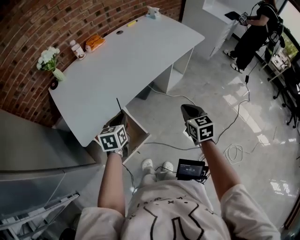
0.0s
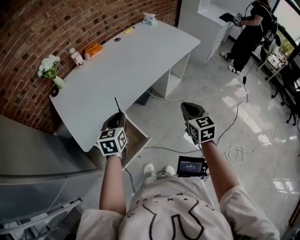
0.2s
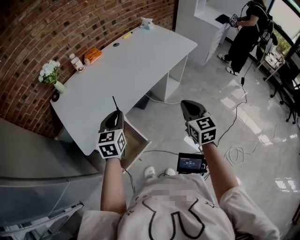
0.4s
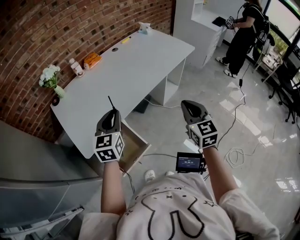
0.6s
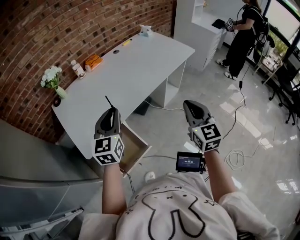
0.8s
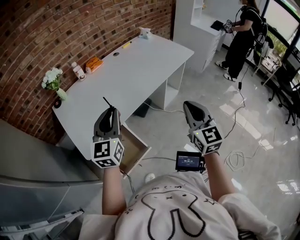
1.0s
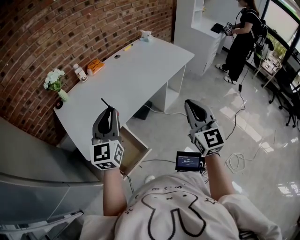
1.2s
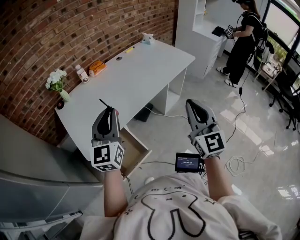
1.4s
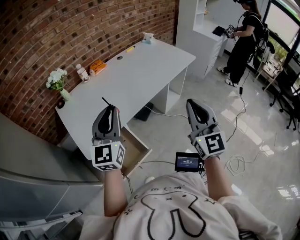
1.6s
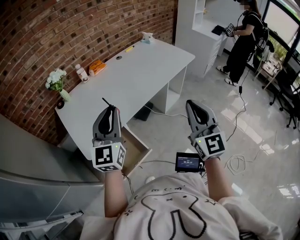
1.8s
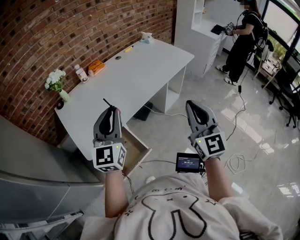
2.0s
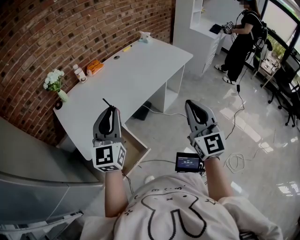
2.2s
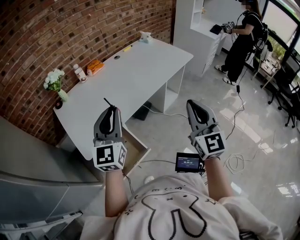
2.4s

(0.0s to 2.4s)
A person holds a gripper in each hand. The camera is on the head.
0.0s - 1.2s: Both grippers move upward, approximately 20 cm. The left gripper tilts its fingers some 40 degrees upward. The right gripper tips its fingers upward by some 30 degrees.
1.2s - 2.4s: There are only small adjustments of the grippers.

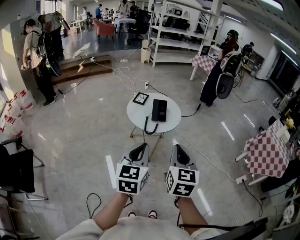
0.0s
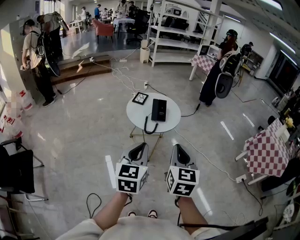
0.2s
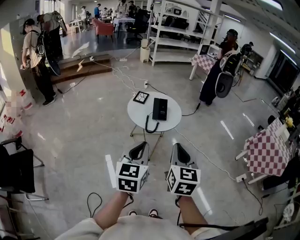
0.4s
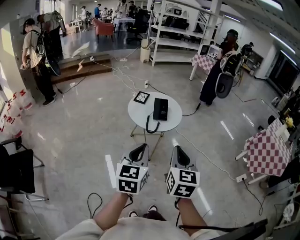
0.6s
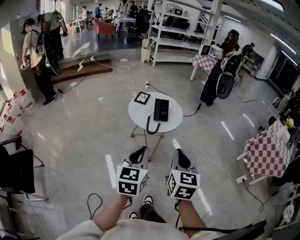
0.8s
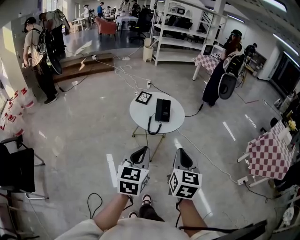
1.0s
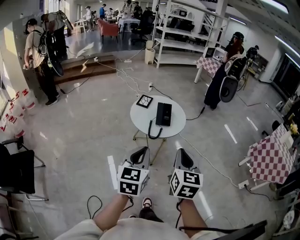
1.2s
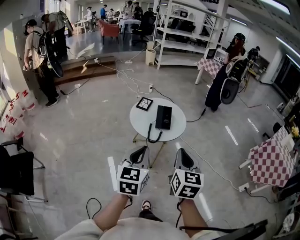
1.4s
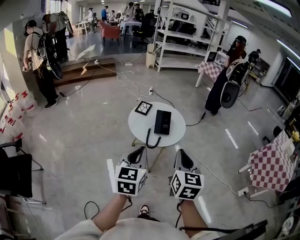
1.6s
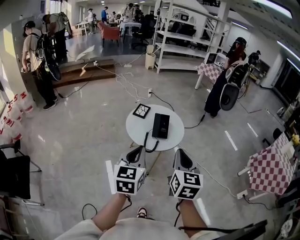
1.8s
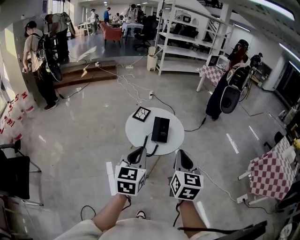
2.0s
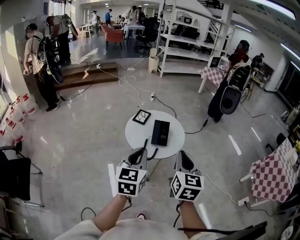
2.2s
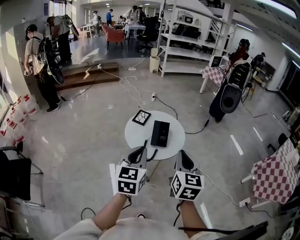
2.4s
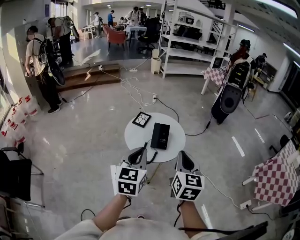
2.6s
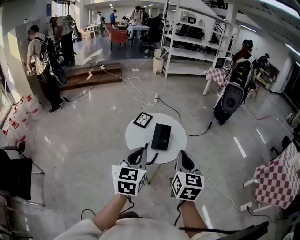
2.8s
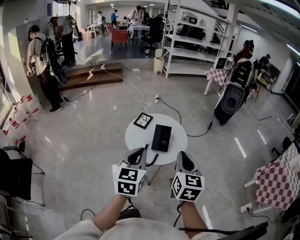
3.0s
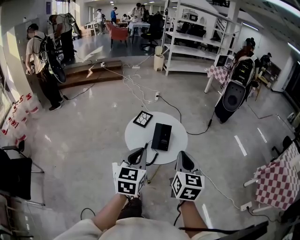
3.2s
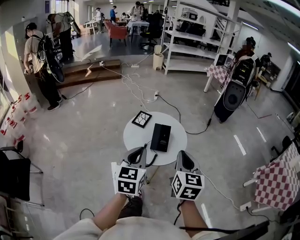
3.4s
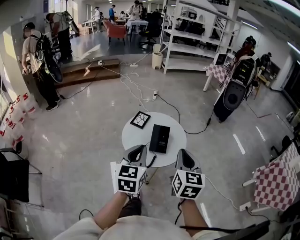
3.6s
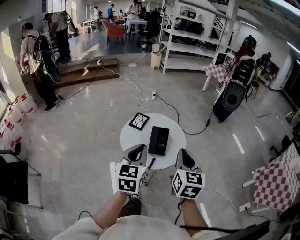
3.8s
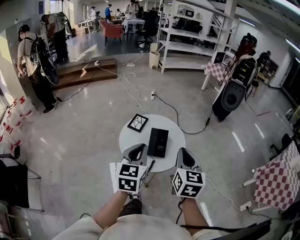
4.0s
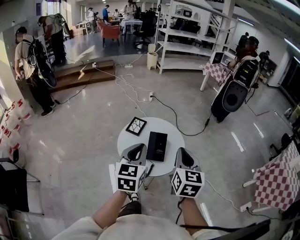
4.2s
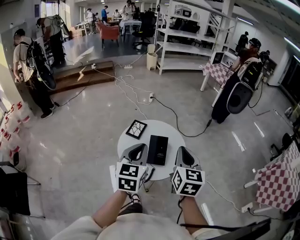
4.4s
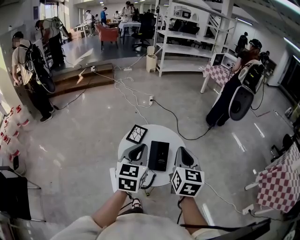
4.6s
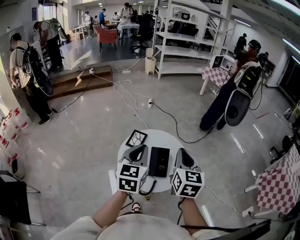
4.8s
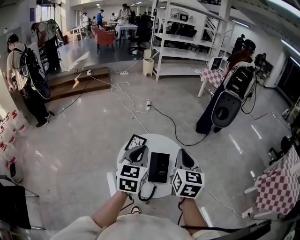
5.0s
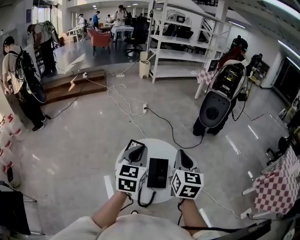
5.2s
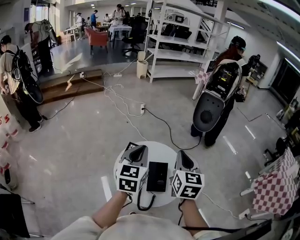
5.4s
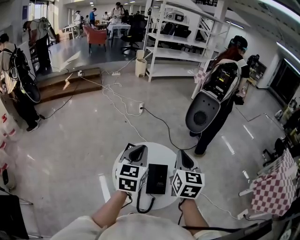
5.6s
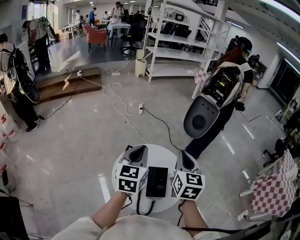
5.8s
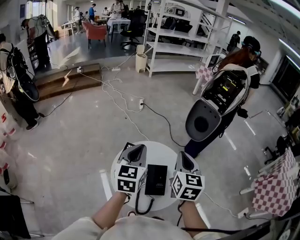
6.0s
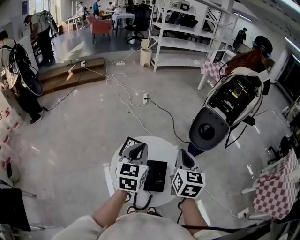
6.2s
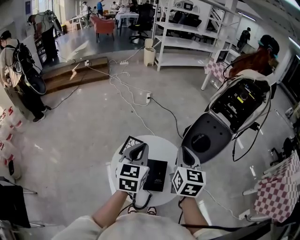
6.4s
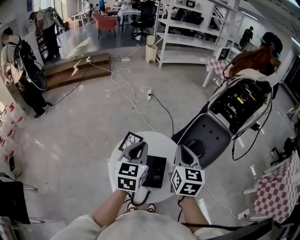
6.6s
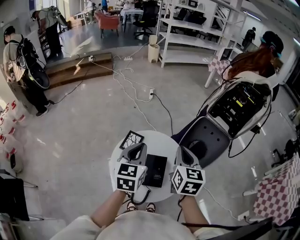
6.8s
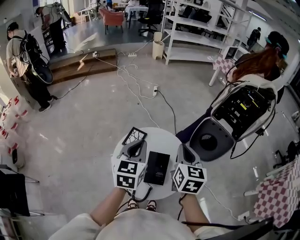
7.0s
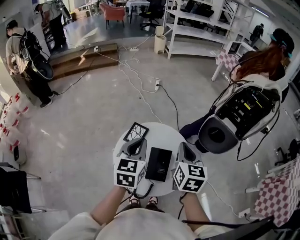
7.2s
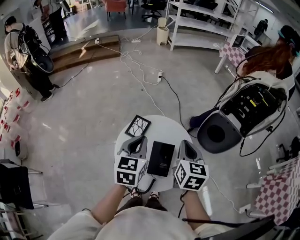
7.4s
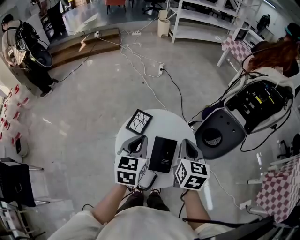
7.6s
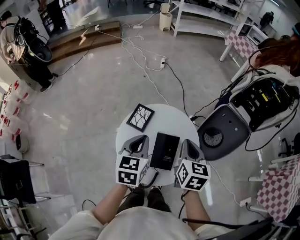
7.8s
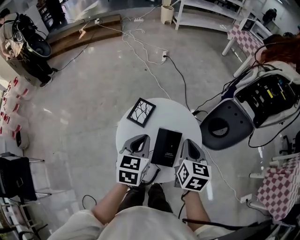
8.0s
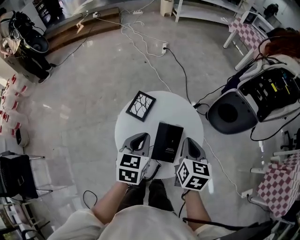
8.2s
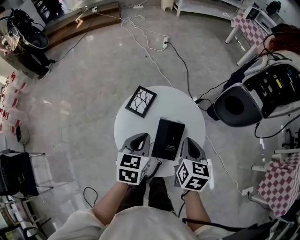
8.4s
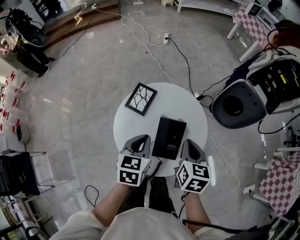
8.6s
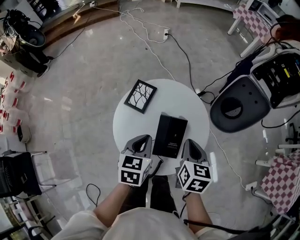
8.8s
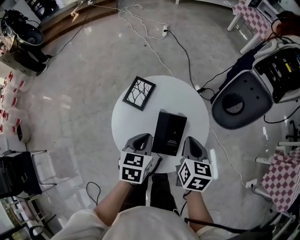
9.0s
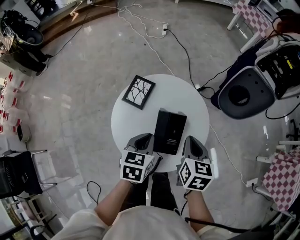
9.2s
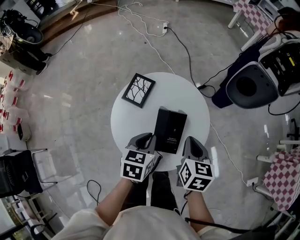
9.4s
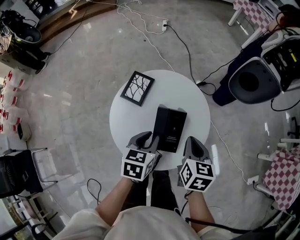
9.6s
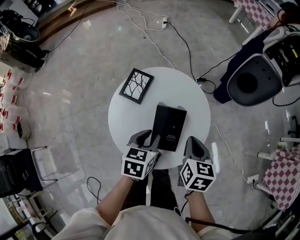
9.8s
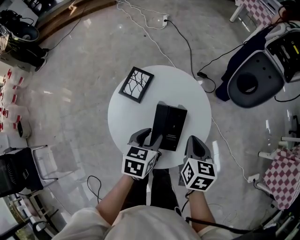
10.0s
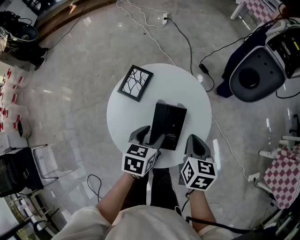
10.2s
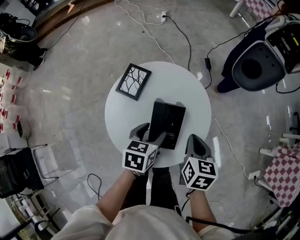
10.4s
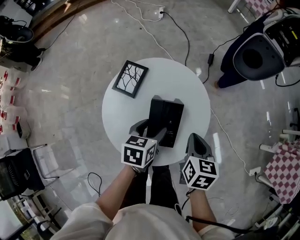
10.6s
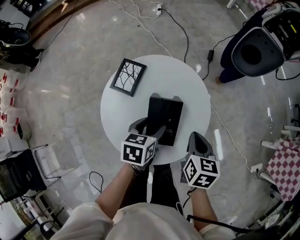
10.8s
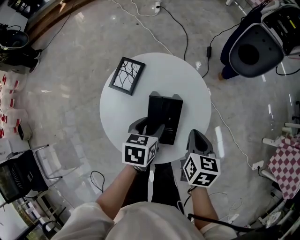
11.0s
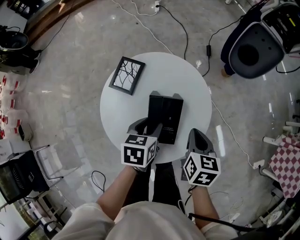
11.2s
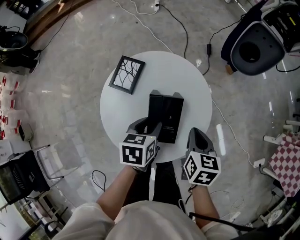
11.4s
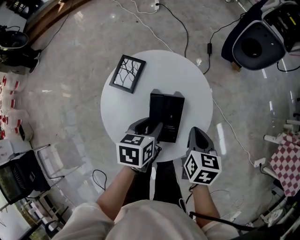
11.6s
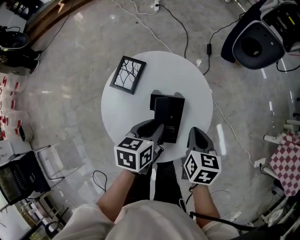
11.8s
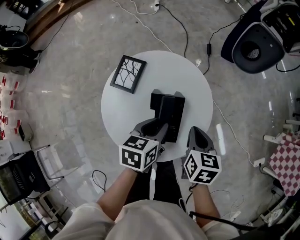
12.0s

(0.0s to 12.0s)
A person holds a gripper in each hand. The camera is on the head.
0.0s - 1.6s: Both grippers move forward, approximately 10 cm.
1.6s - 3.0s: The grippers both shift forward by about 10 cm.
3.0s - 4.4s: The two grippers go roughly 15 cm forward.
4.4s - 6.0s: The grippers both shift forward by some 15 cm.
6.0s - 7.6s: Both grippers travel together downward, some 10 cm.
7.6s - 9.0s: The two grippers go some 15 cm downward.
9.0s - 10.4s: The right gripper shifts by approximately 5 cm. Meanwhile the left gripper changes place by approximately 5 cm, and opens up.
10.4s - 12.0s: The left gripper closes its fingers.

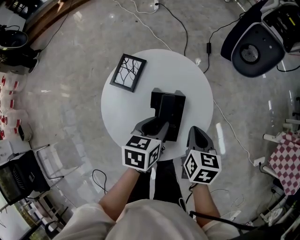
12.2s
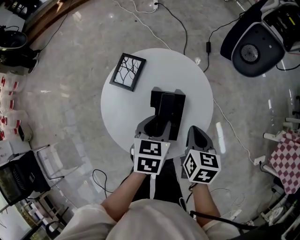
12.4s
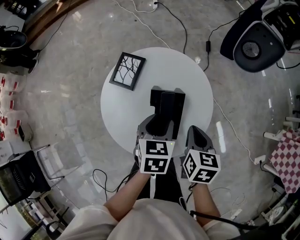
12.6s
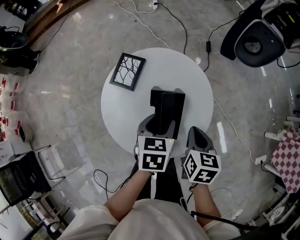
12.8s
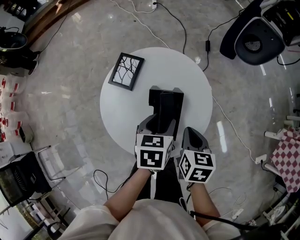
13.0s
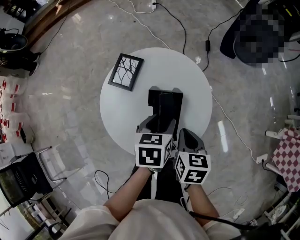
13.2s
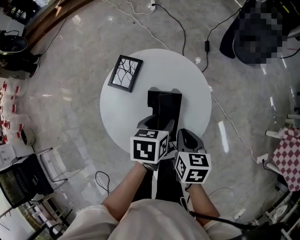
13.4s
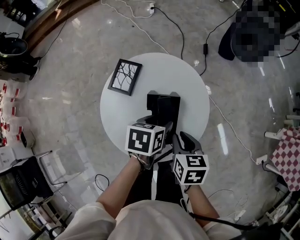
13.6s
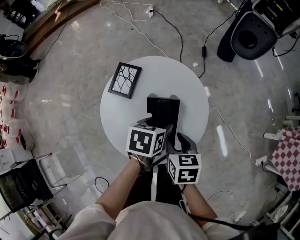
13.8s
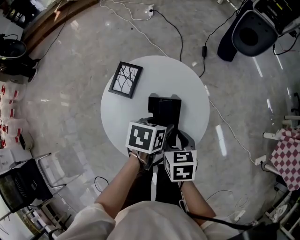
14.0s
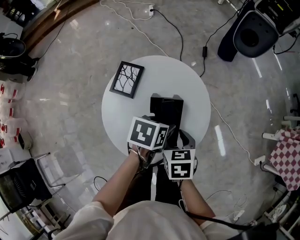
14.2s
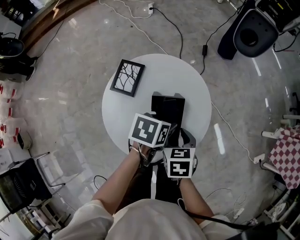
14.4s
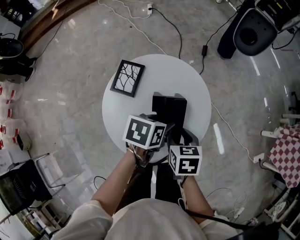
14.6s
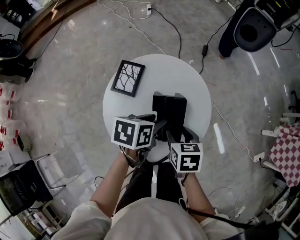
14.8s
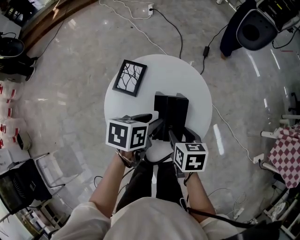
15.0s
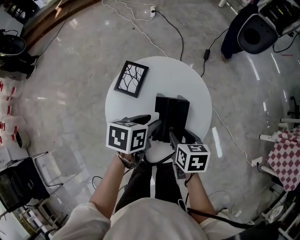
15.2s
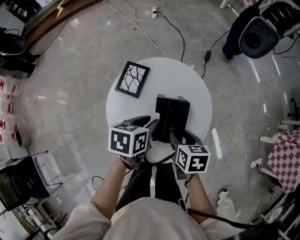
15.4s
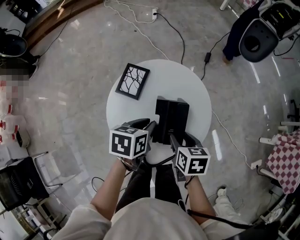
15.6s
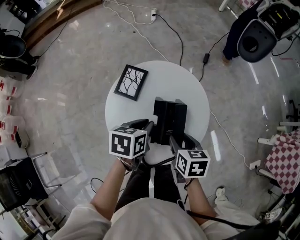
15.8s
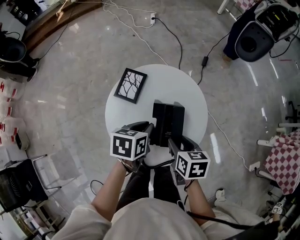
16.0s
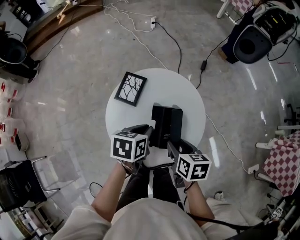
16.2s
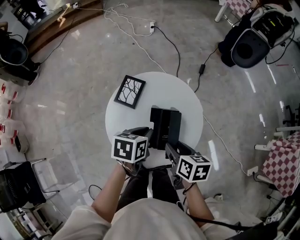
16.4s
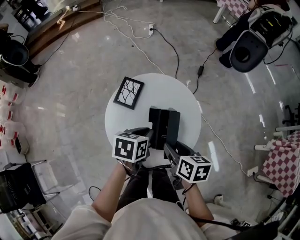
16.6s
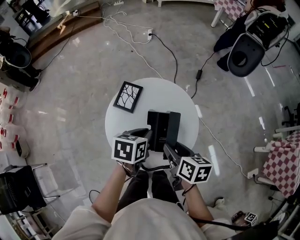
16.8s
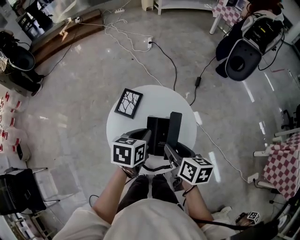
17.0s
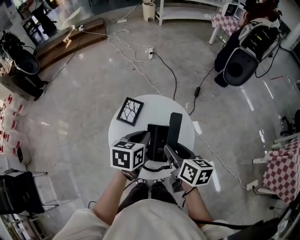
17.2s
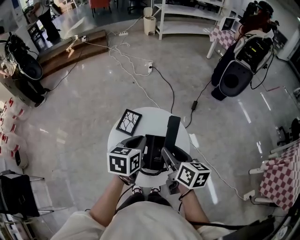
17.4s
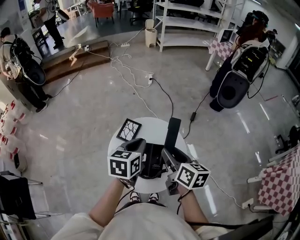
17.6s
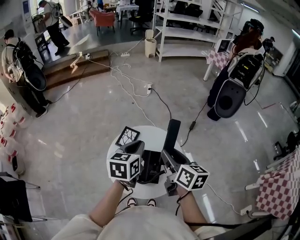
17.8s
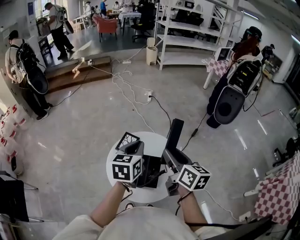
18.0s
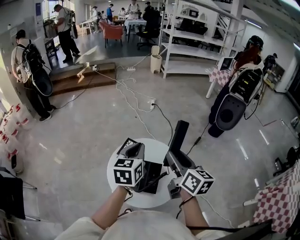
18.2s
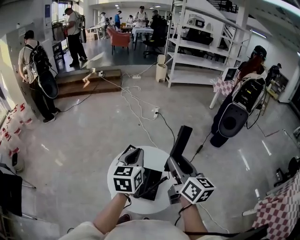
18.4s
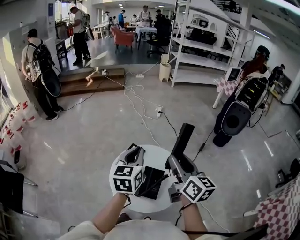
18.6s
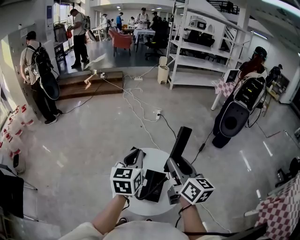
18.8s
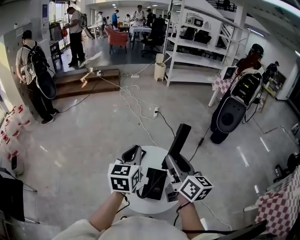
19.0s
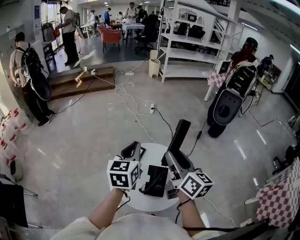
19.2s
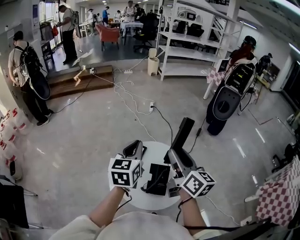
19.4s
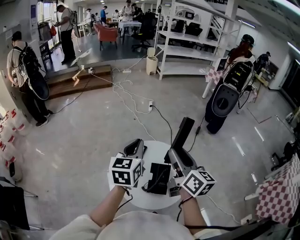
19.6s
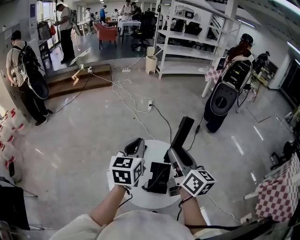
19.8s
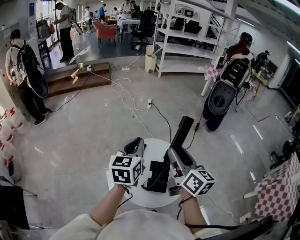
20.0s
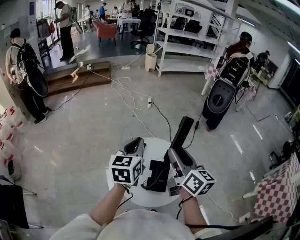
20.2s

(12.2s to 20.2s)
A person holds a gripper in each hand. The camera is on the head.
12.2s - 13.8s: The right gripper travels to the left by roughly 5 cm, and opens. Meanwhile the left gripper opens its fingers.
13.8s - 15.4s: The left gripper travels to the left by approximately 5 cm, and closes up.
15.4s - 17.0s: The right gripper shifts roughly 10 cm upward, and changes its angle by about 20 degrees. Meanwhile the left gripper goes roughly 5 cm upward, and closes its fingers.
17.0s - 18.6s: The grippers both shift upward by roughly 20 cm. The right gripper angles its fingers upward, by about 30 degrees, while the left gripper rotates roughly 40 degrees.
18.6s - 20.2s: The grippers make only small movements.

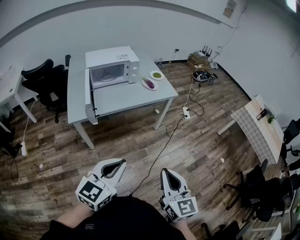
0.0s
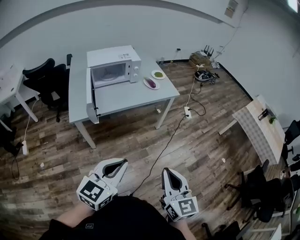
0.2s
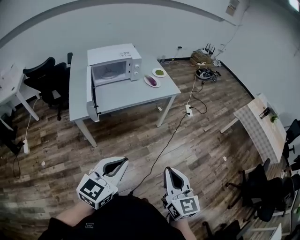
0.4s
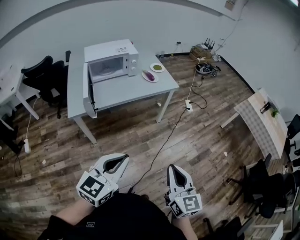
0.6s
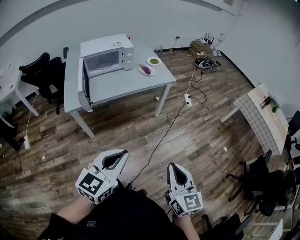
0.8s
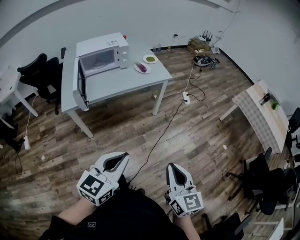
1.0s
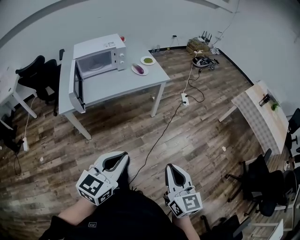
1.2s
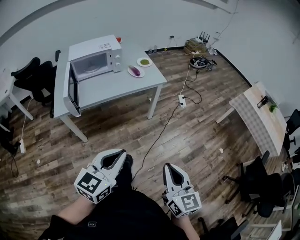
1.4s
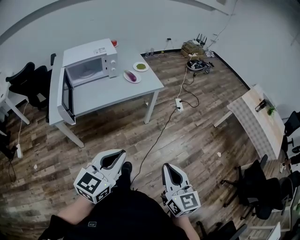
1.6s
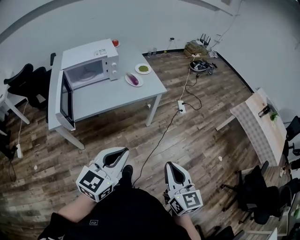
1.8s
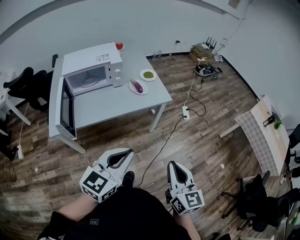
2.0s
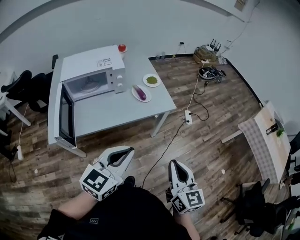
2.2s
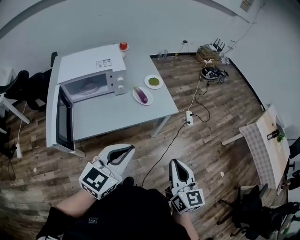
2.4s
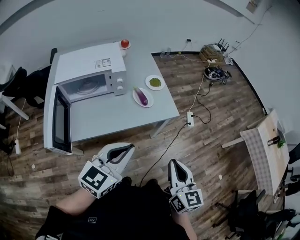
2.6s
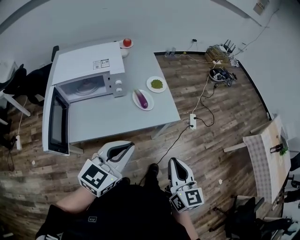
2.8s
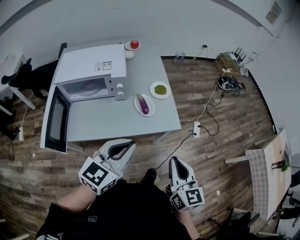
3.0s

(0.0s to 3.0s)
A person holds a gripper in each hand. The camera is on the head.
0.0s - 1.6s: Both grippers travel together to the right and forward, approximately 15 cm.
1.6s - 3.0s: Both grippers are carried forward, approximately 40 cm.
